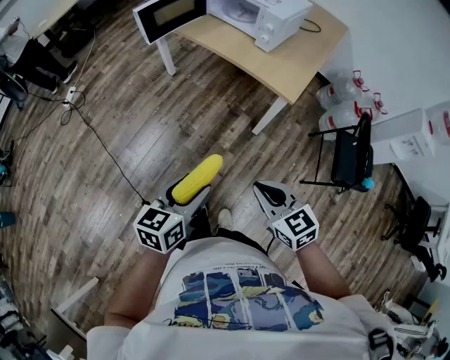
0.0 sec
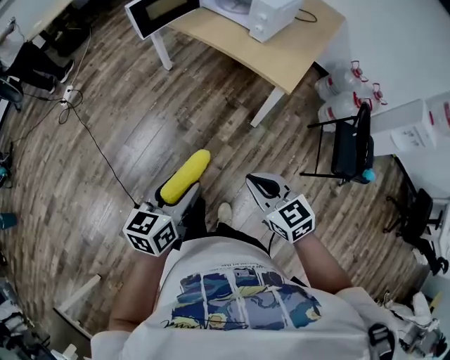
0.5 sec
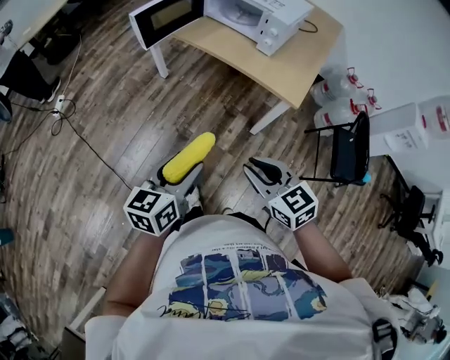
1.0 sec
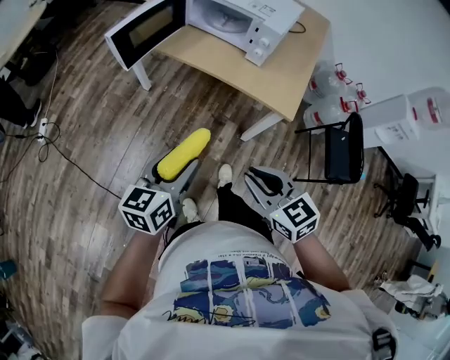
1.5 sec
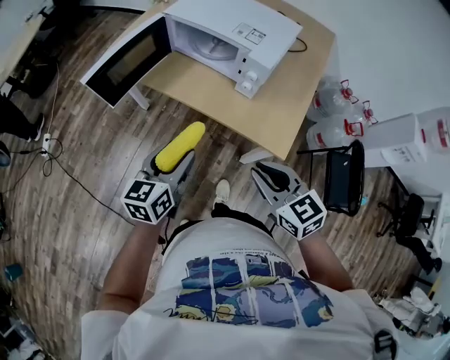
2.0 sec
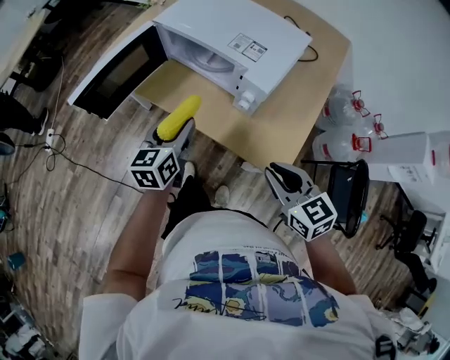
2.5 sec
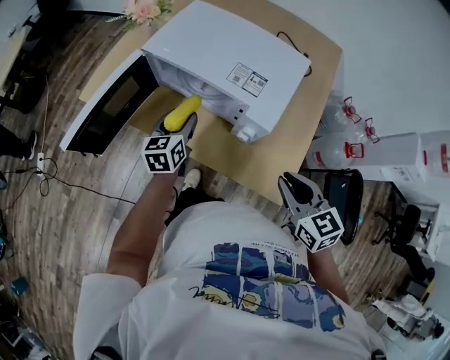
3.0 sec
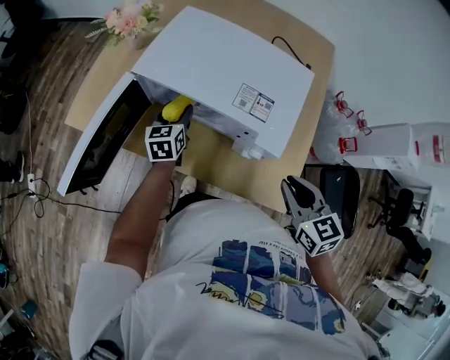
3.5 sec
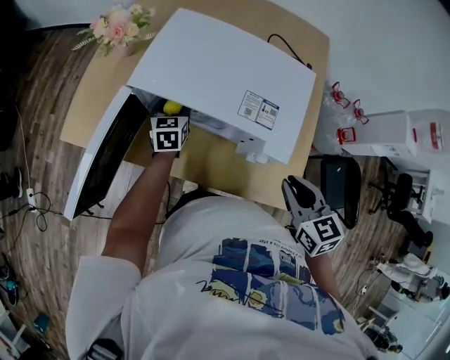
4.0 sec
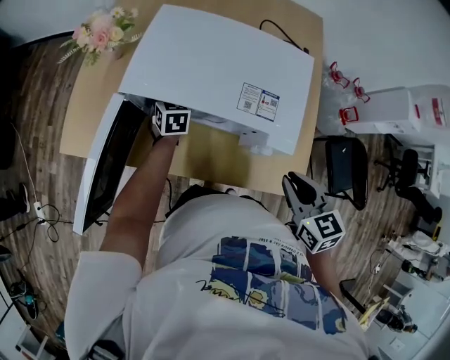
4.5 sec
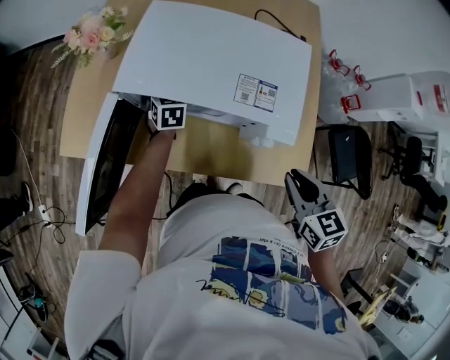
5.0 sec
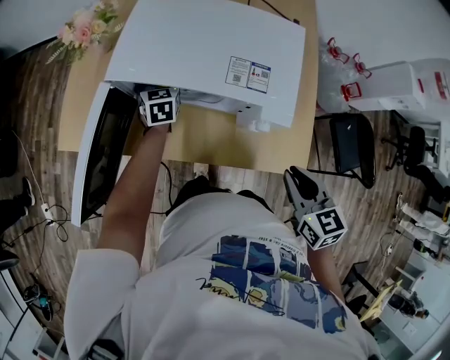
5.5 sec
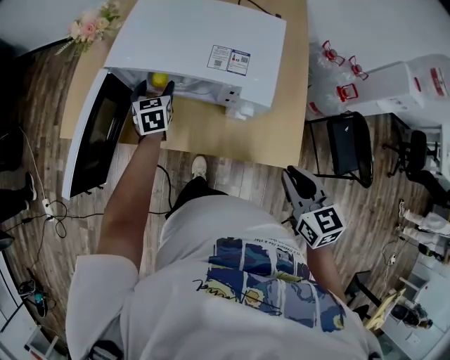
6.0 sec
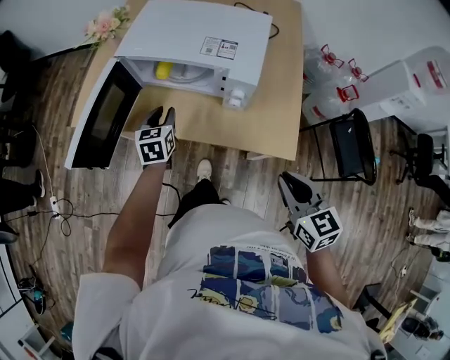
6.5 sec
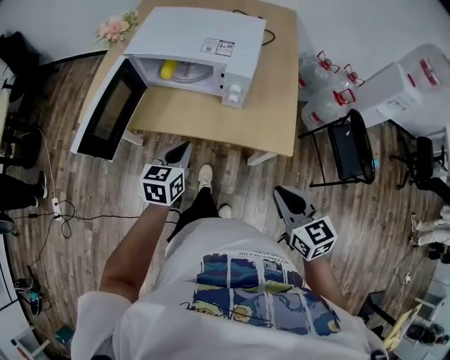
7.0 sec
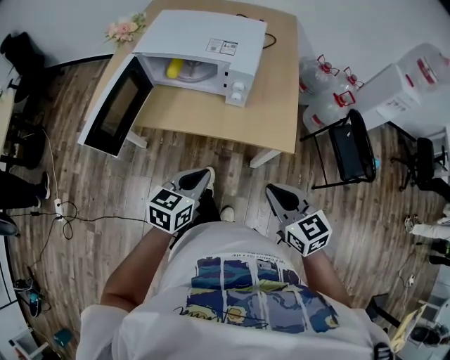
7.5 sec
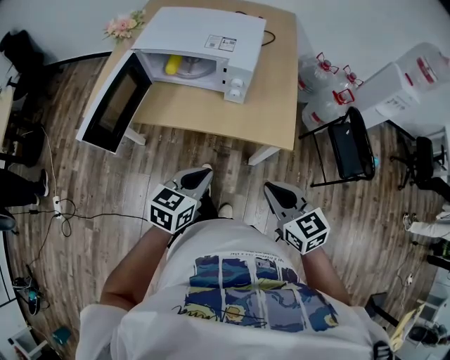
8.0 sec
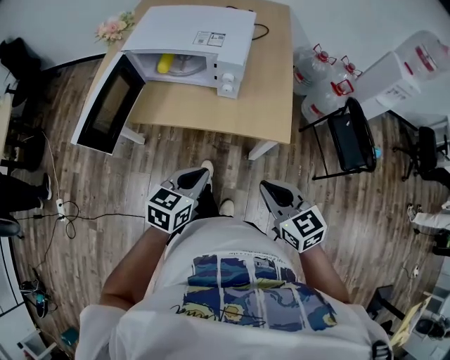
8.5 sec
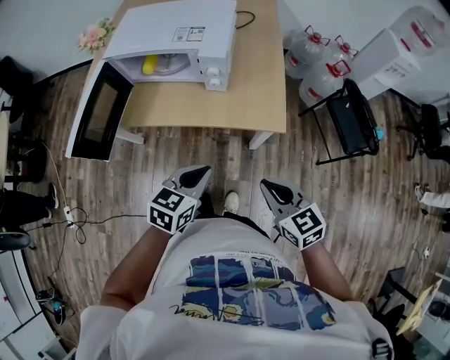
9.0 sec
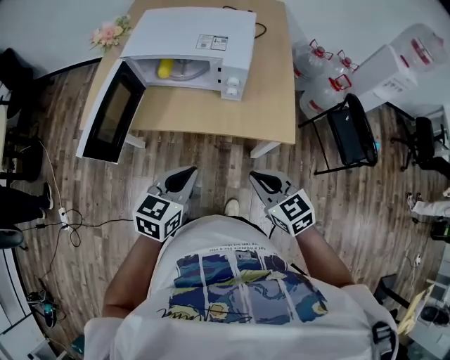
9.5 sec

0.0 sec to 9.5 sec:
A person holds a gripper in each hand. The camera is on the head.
0.0 sec to 2.0 sec: Both grippers move forward, roughly 35 cm.
2.0 sec to 4.0 sec: The left gripper shifts approximately 50 cm forward. The right gripper heads forward, covering some 25 cm, and rotates some 30 degrees.
4.0 sec to 5.5 sec: The right gripper moves backward, some 5 cm.
5.5 sec to 7.5 sec: The left gripper shifts approximately 50 cm backward, rotates some 30 degrees, and closes, while the right gripper goes roughly 25 cm backward.
7.5 sec to 9.5 sec: The right gripper ends up approximately 5 cm from where it was.

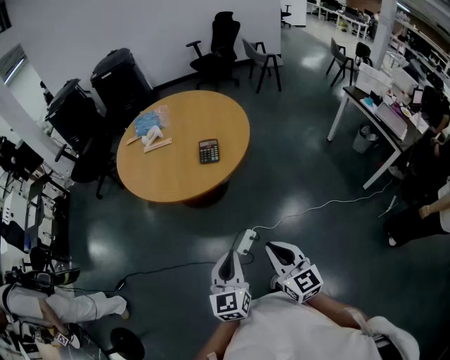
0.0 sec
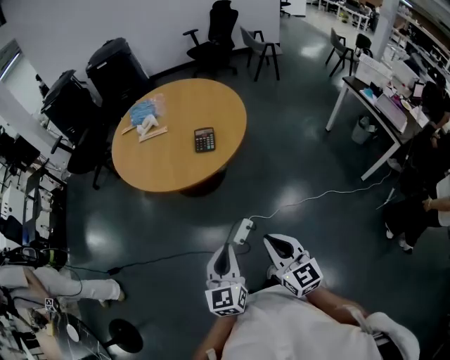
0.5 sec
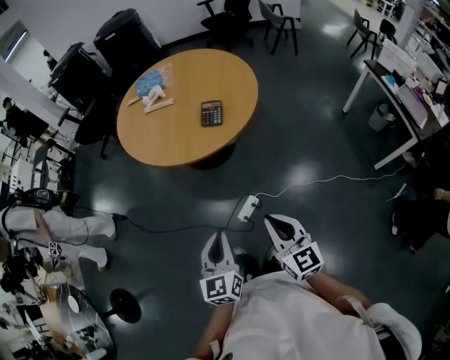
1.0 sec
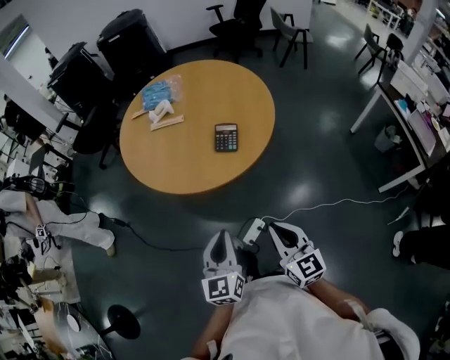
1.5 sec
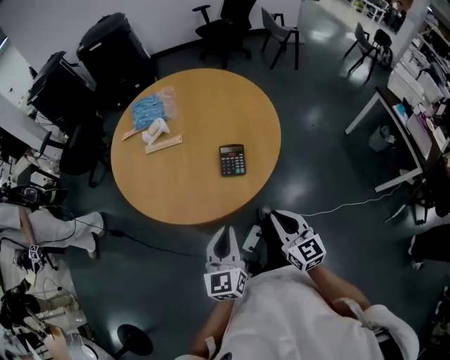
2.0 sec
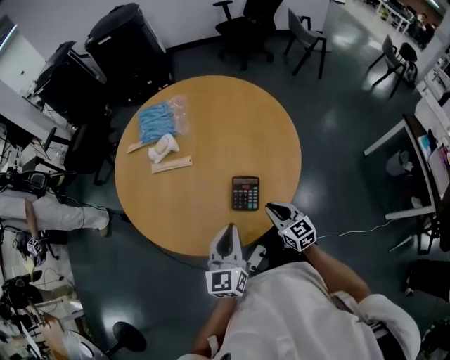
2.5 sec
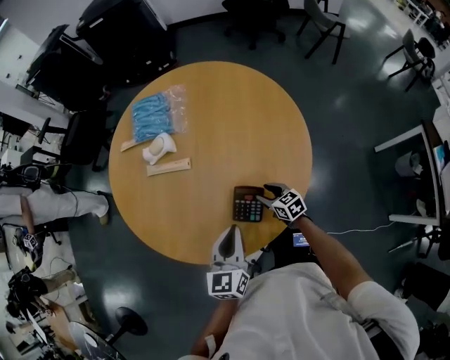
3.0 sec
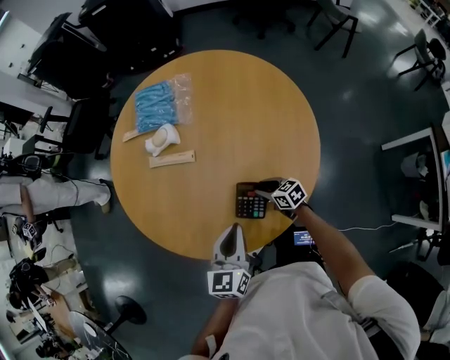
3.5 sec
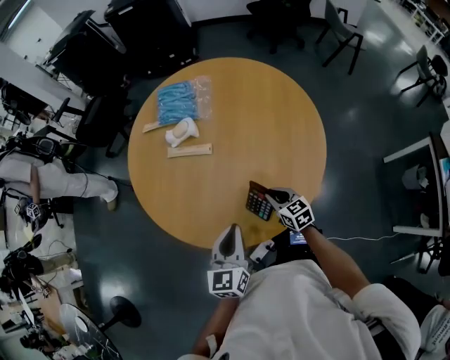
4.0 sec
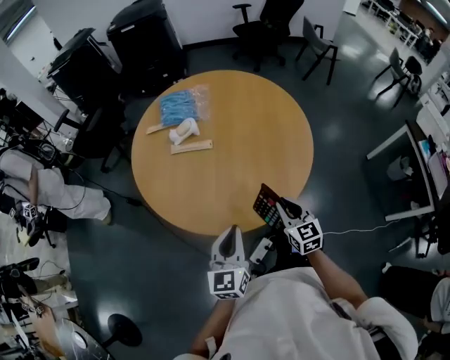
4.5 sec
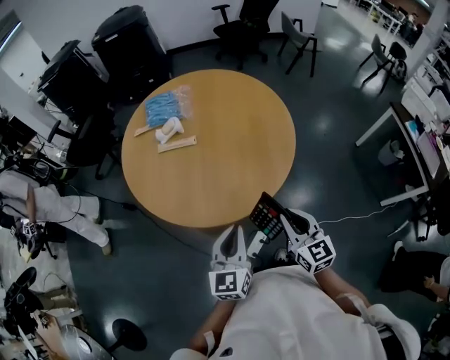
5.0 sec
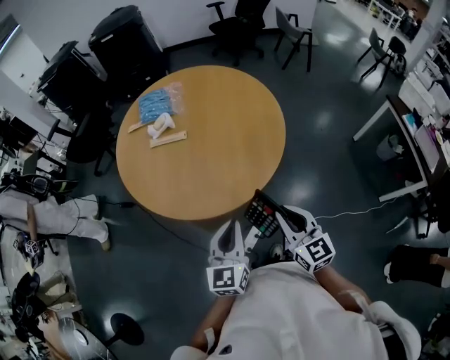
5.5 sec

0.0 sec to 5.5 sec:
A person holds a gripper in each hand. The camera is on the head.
0.0 sec to 2.0 sec: Both grippers move forward, about 35 cm.
2.0 sec to 3.5 sec: The left gripper changes place by approximately 25 cm, while the right gripper ends up some 40 cm from where it was, swivels about 50 degrees, and opens up.
3.5 sec to 5.5 sec: The right gripper shifts by some 50 cm, changes its angle by approximately 50 degrees, and closes its fingers, while the left gripper moves roughly 25 cm.

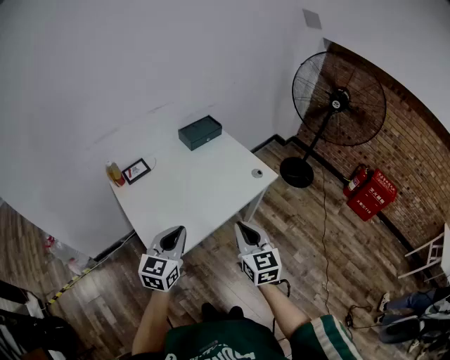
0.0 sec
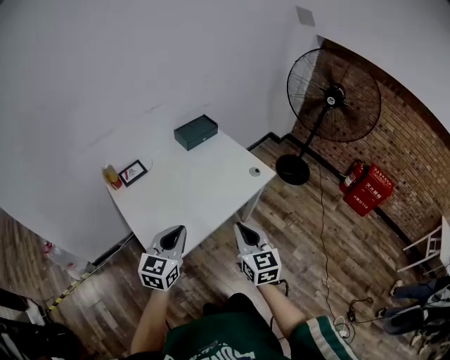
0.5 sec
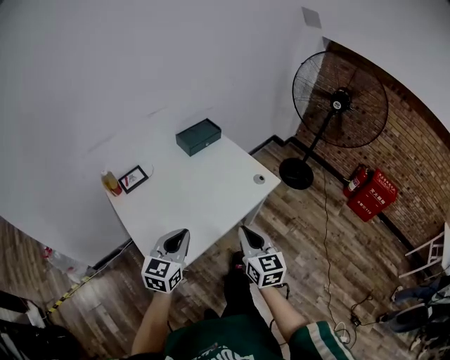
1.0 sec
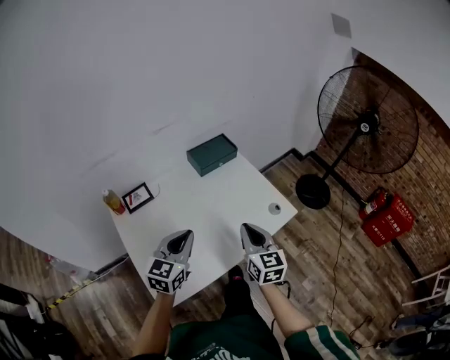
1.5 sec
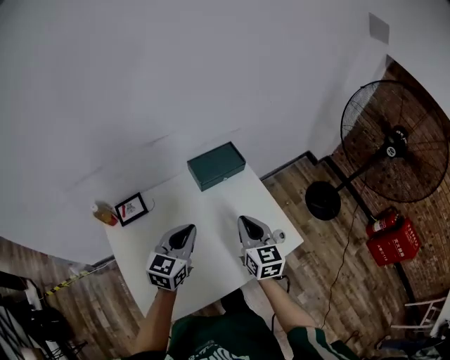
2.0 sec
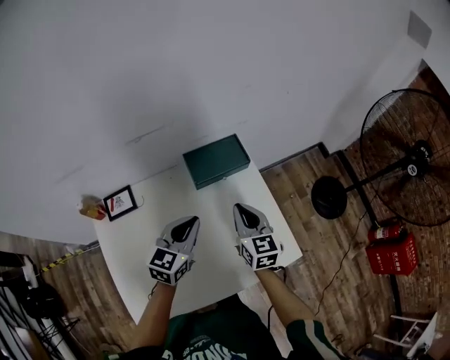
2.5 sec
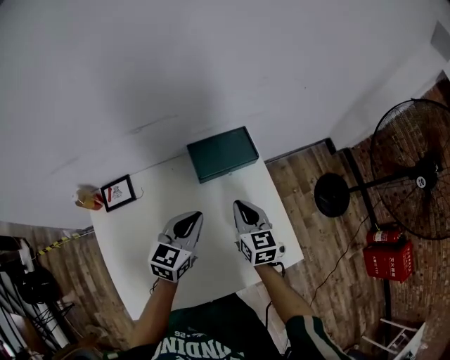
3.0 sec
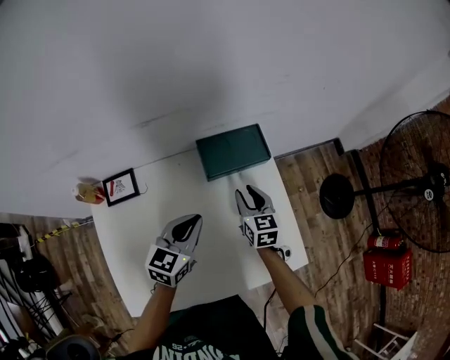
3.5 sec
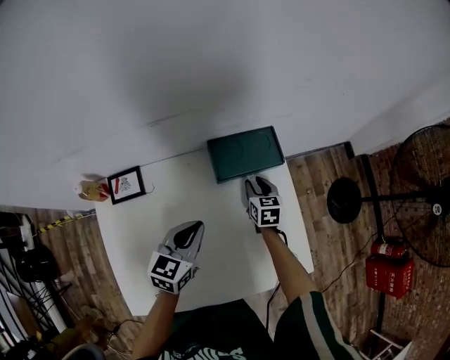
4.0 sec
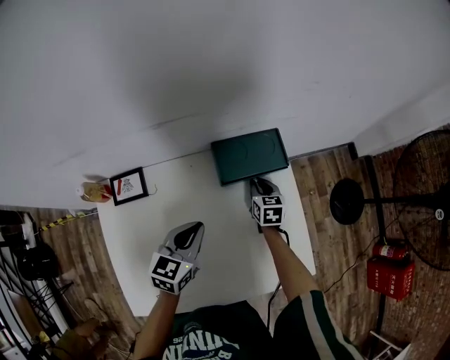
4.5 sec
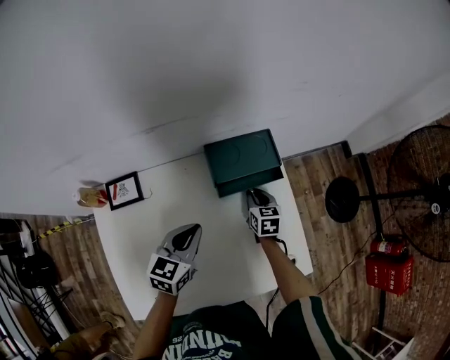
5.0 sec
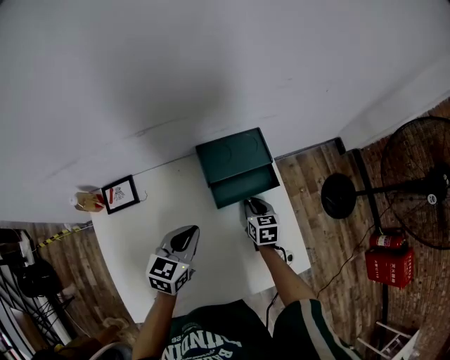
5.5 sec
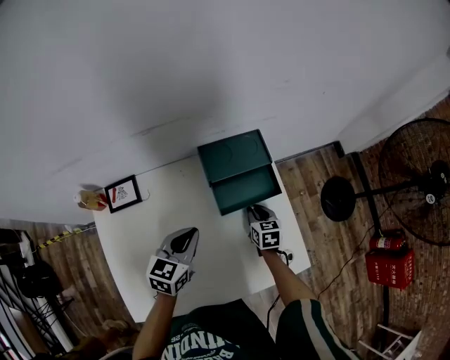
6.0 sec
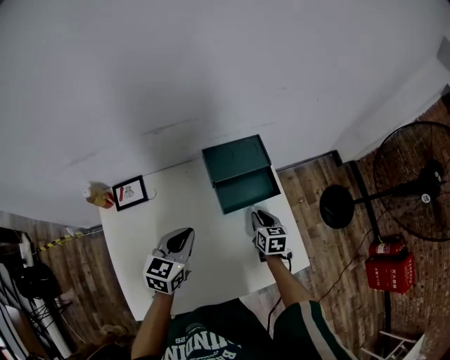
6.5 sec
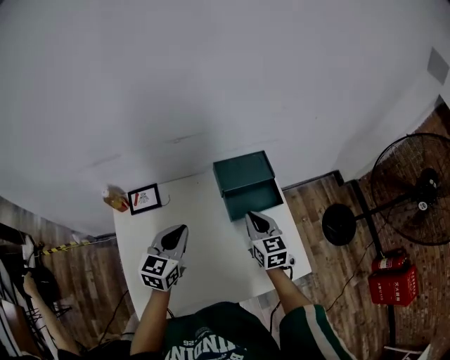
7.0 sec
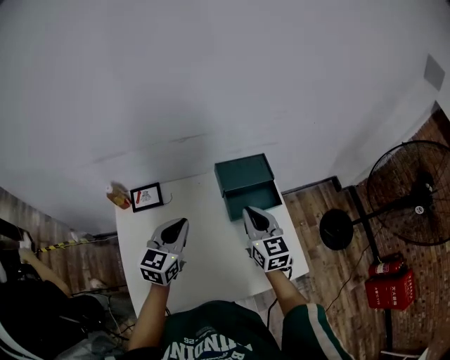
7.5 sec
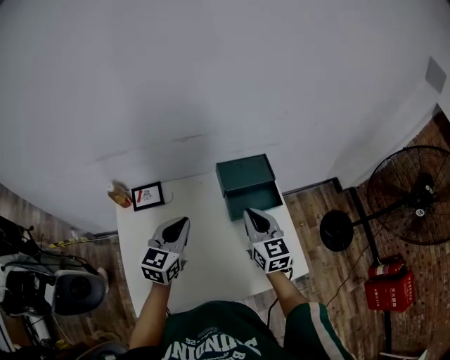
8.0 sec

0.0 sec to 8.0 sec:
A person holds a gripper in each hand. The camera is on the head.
0.0 sec to 2.0 sec: The grippers both shift forward by roughly 35 cm.
2.0 sec to 4.0 sec: The left gripper travels downward and forward by roughly 15 cm, while the right gripper travels forward and downward by about 35 cm, rotates some 30 degrees, and opens.
4.0 sec to 6.0 sec: The right gripper moves backward, roughly 10 cm.
6.0 sec to 8.0 sec: The right gripper travels upward by roughly 25 cm, and tilts its fingers some 30 degrees upward; the left gripper goes about 15 cm upward and to the left.

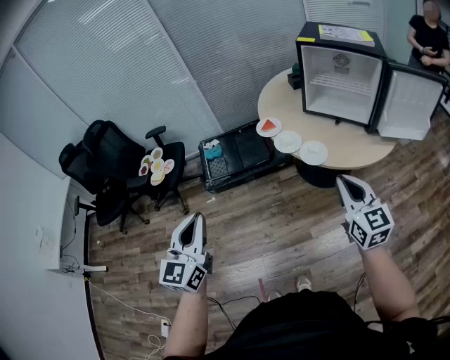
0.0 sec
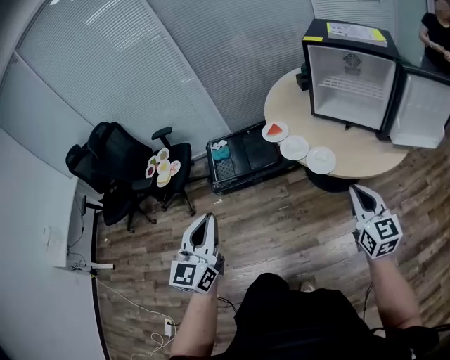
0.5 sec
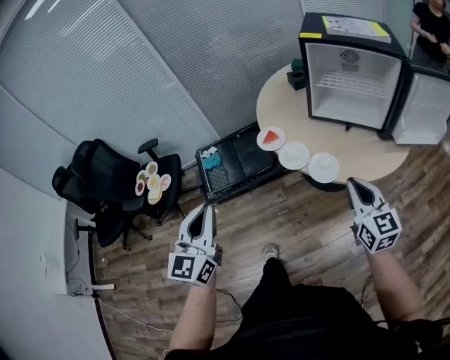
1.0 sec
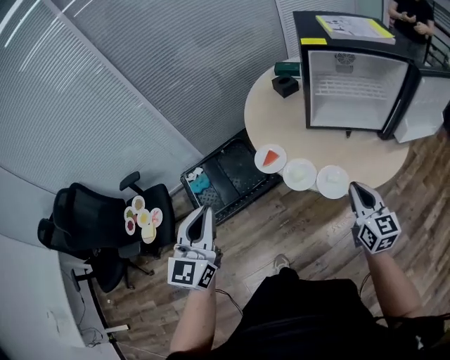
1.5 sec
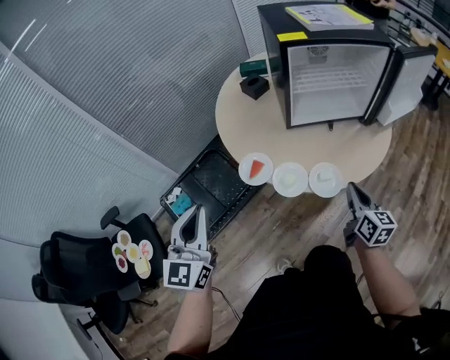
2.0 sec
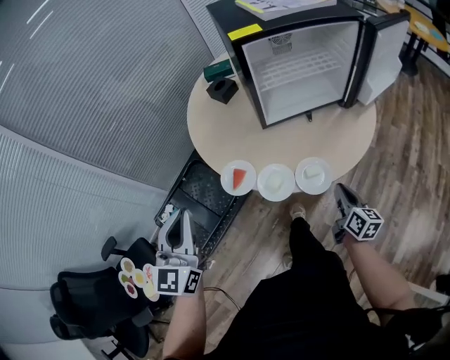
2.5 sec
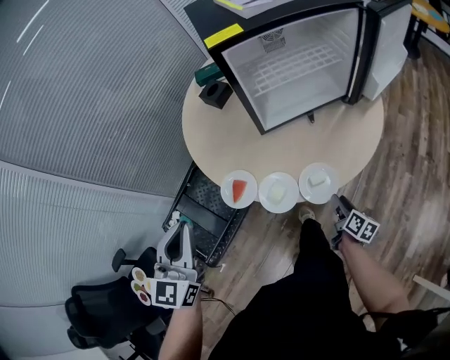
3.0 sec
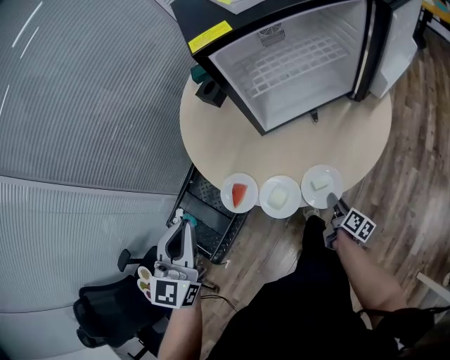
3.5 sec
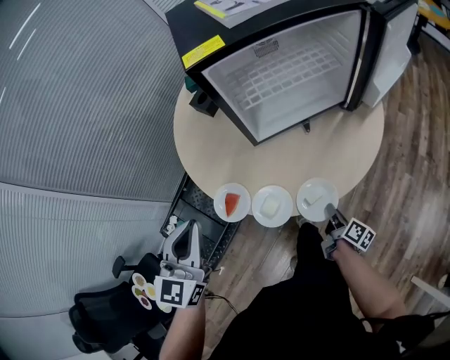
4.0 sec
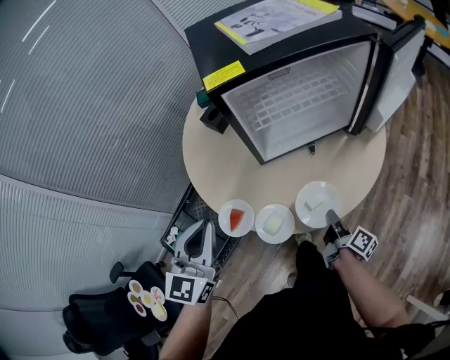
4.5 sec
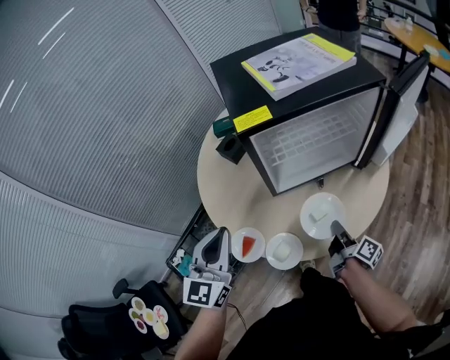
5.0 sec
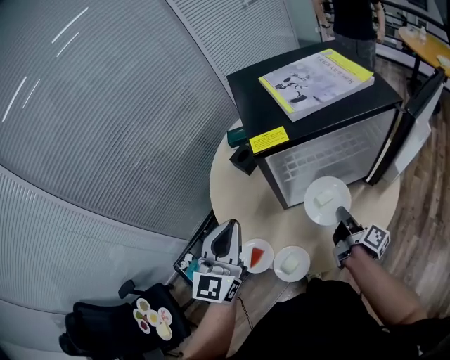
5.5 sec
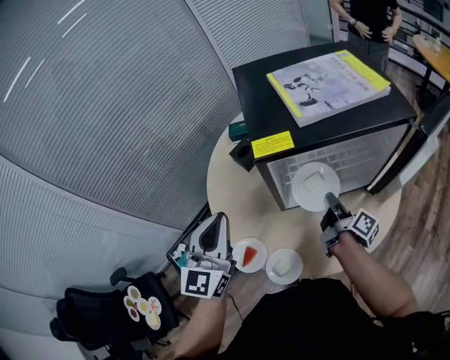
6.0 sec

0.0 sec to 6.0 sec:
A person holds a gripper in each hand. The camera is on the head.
0.0 sec to 2.0 sec: The right gripper moves some 30 cm, and changes its angle by about 50 degrees. Meanwhile the left gripper changes place by roughly 50 cm, and changes its angle by some 30 degrees.
2.0 sec to 4.0 sec: The left gripper travels forward and to the right by roughly 20 cm; the right gripper goes about 20 cm downward, twists about 50 degrees clockwise, seen from behind, and opens, then closes again.
4.0 sec to 6.0 sec: The right gripper moves forward and upward, roughly 35 cm, while the left gripper heads forward and upward, covering some 15 cm.
